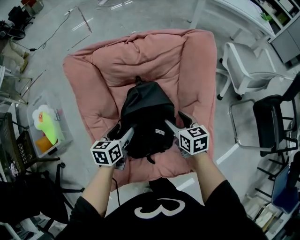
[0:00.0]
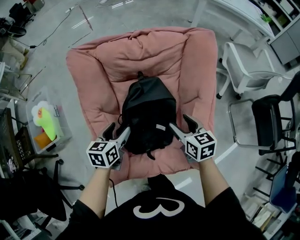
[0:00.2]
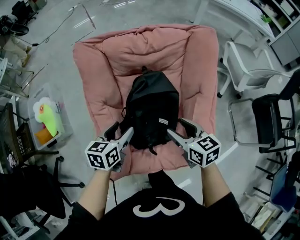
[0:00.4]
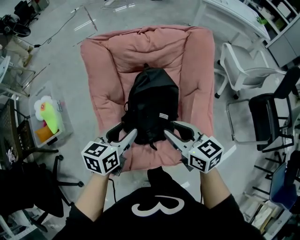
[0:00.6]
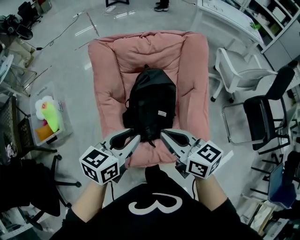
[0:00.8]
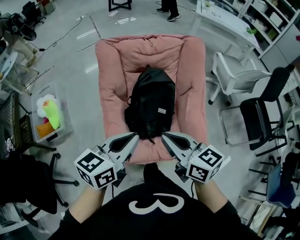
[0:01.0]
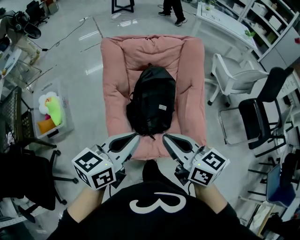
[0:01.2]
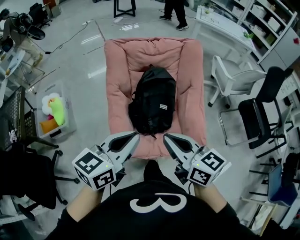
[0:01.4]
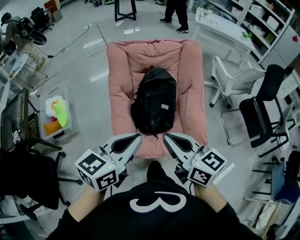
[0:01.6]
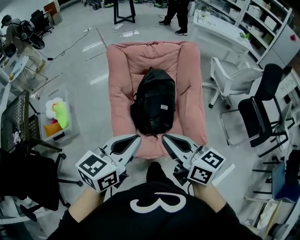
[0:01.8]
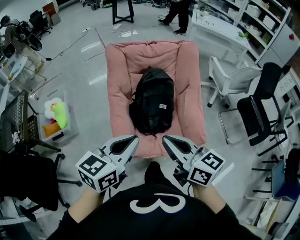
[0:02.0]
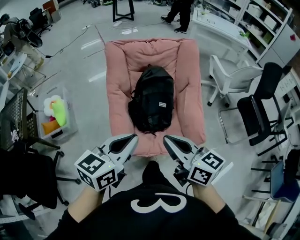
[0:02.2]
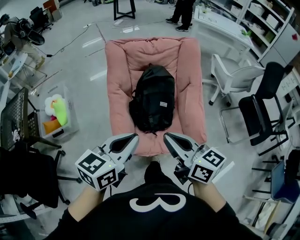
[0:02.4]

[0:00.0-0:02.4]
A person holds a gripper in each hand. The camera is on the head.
0:00.0 to 0:01.2: The left gripper heads upward and backward, covering about 40 cm, swivels roughly 30 degrees, and closes up, while the right gripper travels backward and upward by approximately 40 cm, turns by some 30 degrees, and closes its fingers.
0:01.2 to 0:02.4: Both grippers move backward, roughly 5 cm.

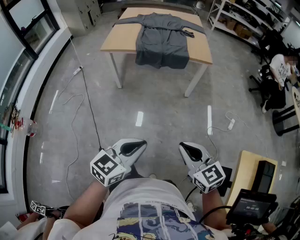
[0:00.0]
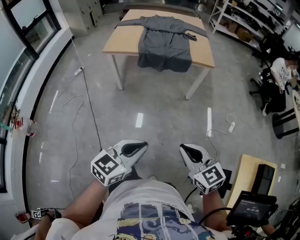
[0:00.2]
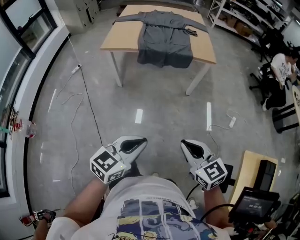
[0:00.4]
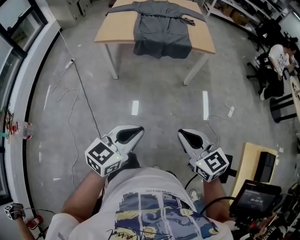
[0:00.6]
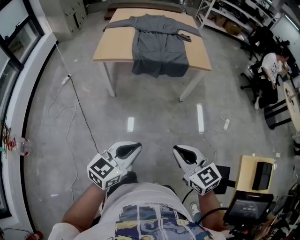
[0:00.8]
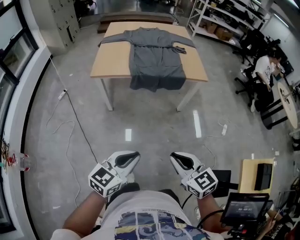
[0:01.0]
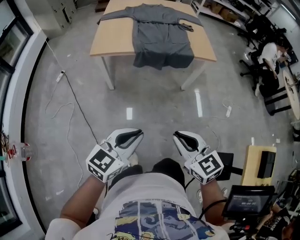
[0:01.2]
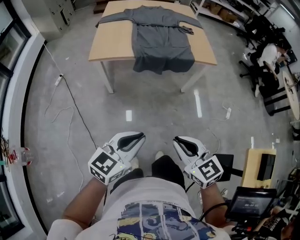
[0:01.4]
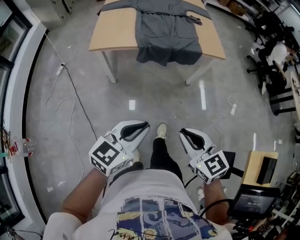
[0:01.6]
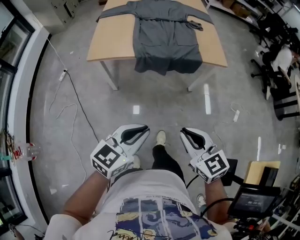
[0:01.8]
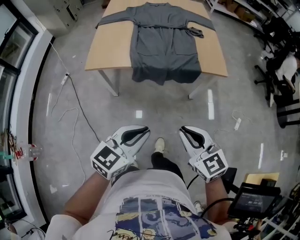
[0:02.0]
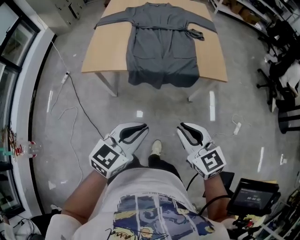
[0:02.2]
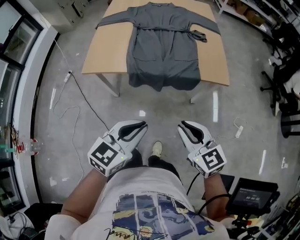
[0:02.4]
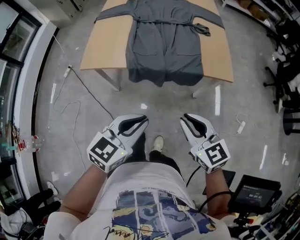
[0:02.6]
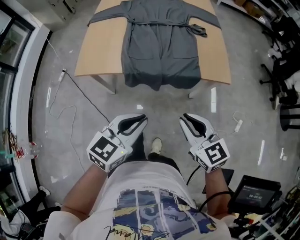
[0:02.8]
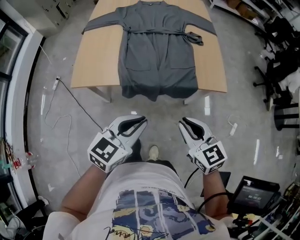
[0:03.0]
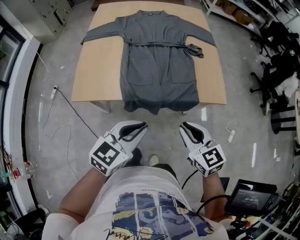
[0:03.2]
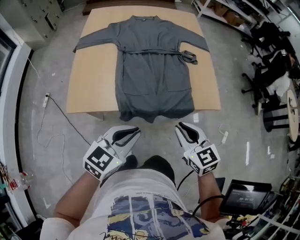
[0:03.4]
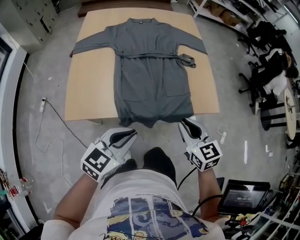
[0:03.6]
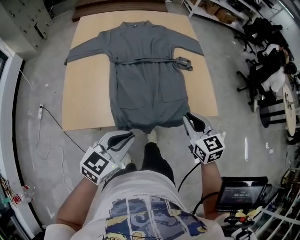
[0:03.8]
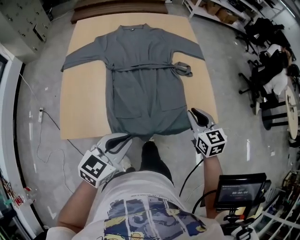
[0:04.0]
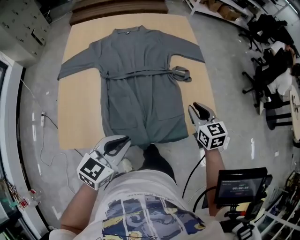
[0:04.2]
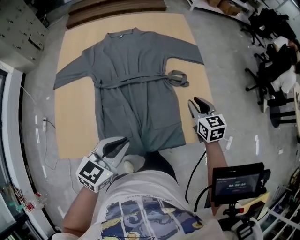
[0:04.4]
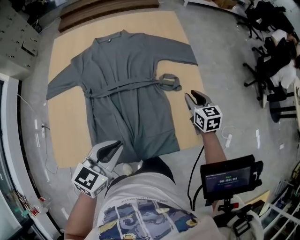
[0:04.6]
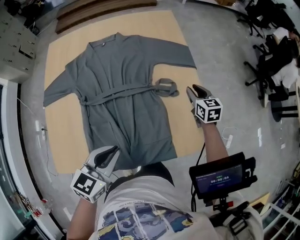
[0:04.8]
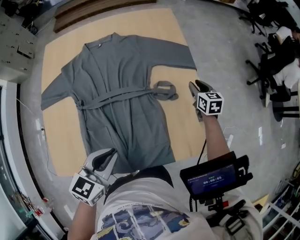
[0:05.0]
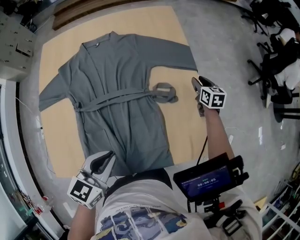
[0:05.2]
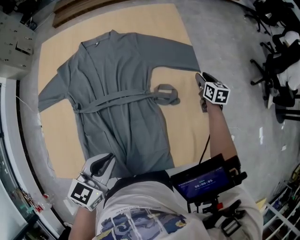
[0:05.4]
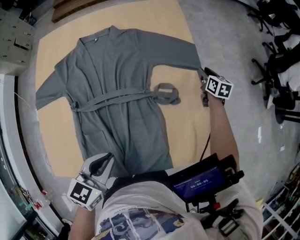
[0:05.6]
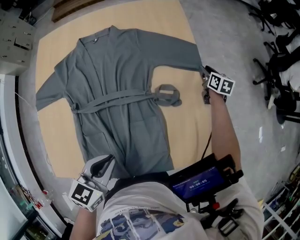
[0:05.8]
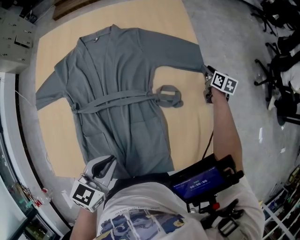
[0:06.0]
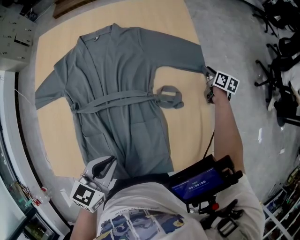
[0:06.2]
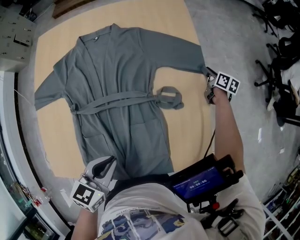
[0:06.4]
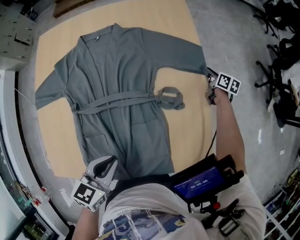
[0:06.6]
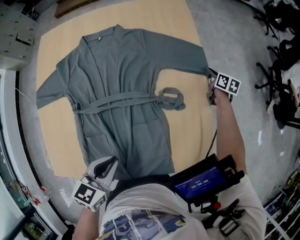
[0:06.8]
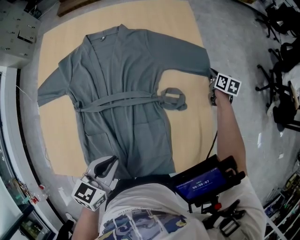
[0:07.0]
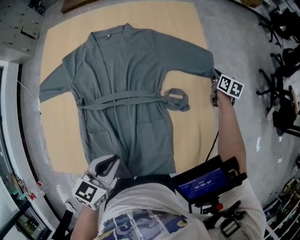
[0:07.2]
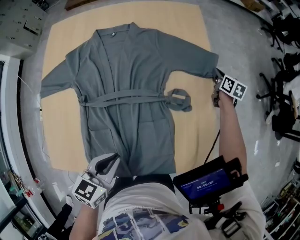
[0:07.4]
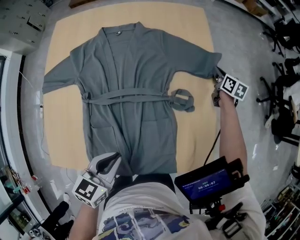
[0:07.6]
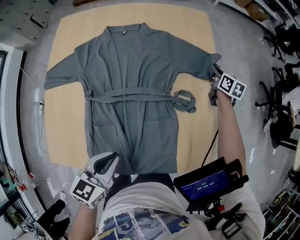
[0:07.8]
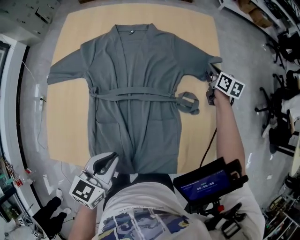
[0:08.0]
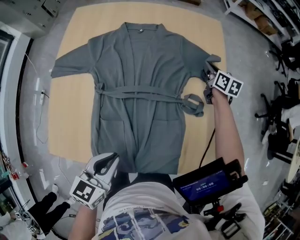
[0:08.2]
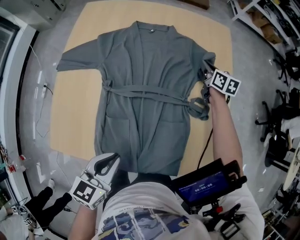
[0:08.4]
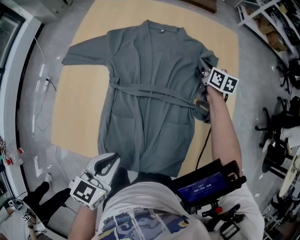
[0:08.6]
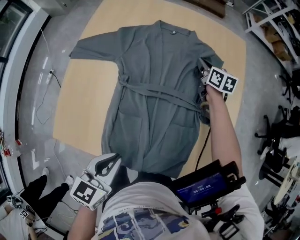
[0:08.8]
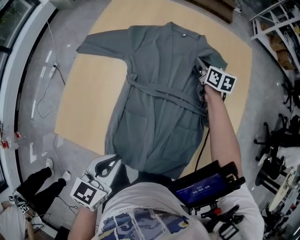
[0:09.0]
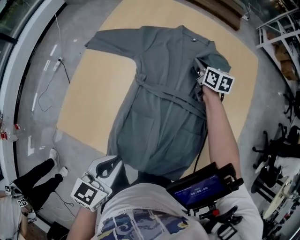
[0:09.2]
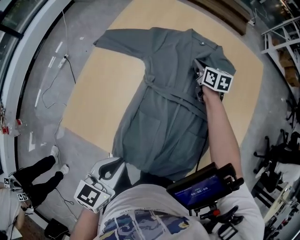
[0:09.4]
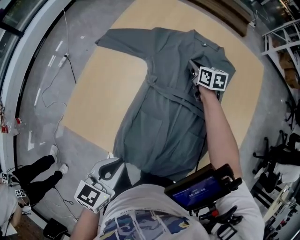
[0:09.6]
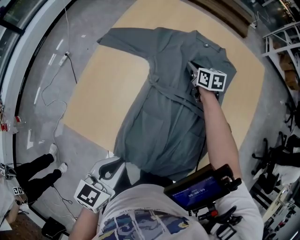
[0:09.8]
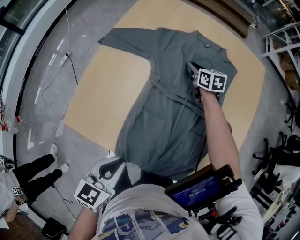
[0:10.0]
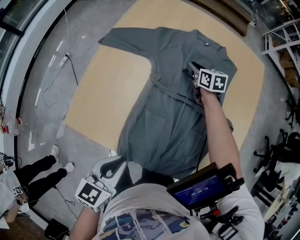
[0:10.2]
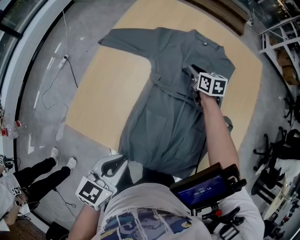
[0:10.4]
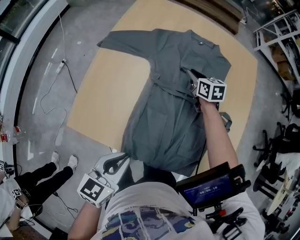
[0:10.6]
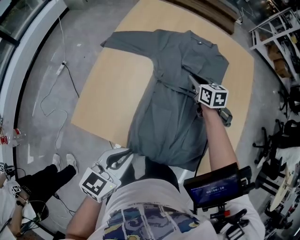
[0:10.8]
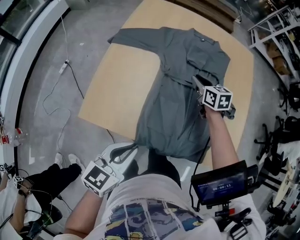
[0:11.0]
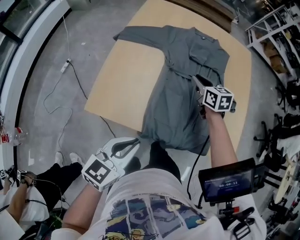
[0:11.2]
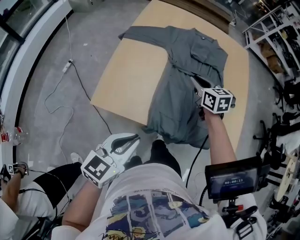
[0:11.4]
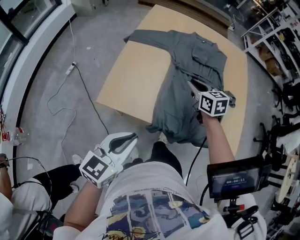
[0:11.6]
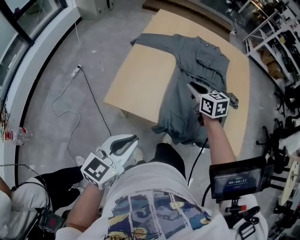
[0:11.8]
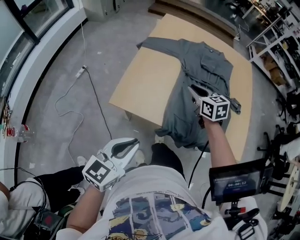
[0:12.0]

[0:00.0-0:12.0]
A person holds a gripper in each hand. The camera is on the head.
0:00.0 to 0:01.6: Both grippers move forward and to the left, roughly 25 cm.
0:01.6 to 0:03.0: The grippers both shift forward by some 30 cm.
0:03.0 to 0:04.4: The left gripper goes approximately 25 cm forward. The right gripper moves forward, approximately 40 cm, and changes its angle by some 20 degrees.
0:04.4 to 0:06.0: The left gripper shifts some 15 cm forward and downward, while the right gripper moves forward and downward, some 40 cm, and turns by some 30 degrees.
0:06.0 to 0:07.6: The right gripper heads upward and to the left, covering approximately 10 cm, and closes up.
0:07.6 to 0:09.0: The left gripper shifts by some 15 cm. Meanwhile the right gripper shifts by roughly 40 cm, and rotates roughly 30 degrees.
0:09.0 to 0:10.4: The left gripper heads to the left, covering some 5 cm; the right gripper travels to the left by some 15 cm.
0:10.4 to 0:12.0: The left gripper shifts roughly 25 cm backward, to the left and upward, while the right gripper travels backward, to the left and upward by roughly 35 cm.

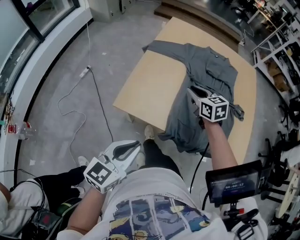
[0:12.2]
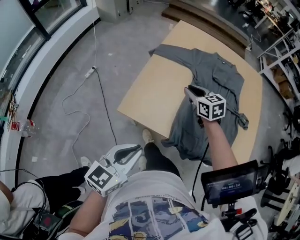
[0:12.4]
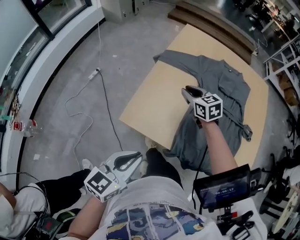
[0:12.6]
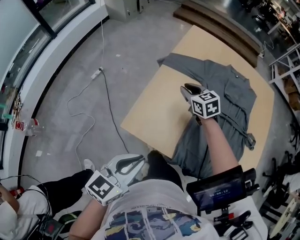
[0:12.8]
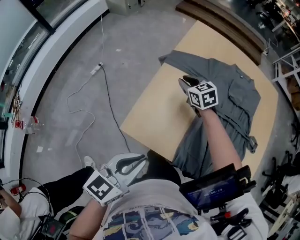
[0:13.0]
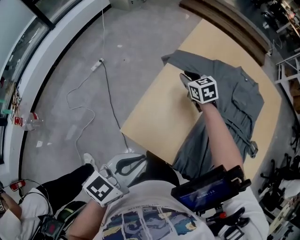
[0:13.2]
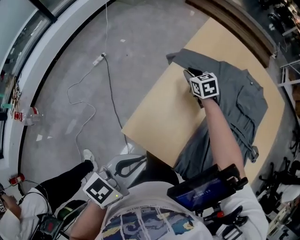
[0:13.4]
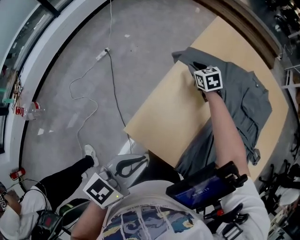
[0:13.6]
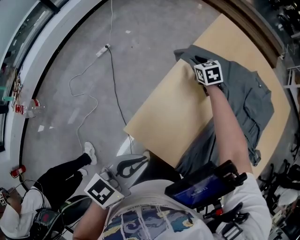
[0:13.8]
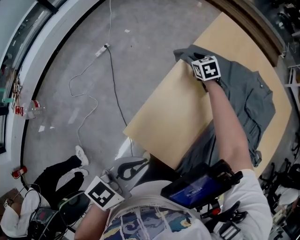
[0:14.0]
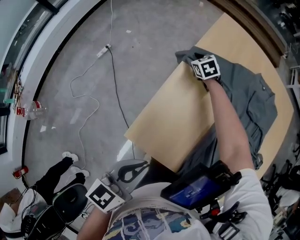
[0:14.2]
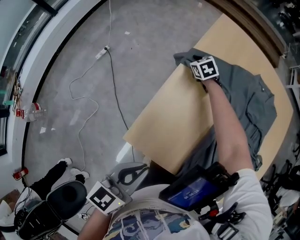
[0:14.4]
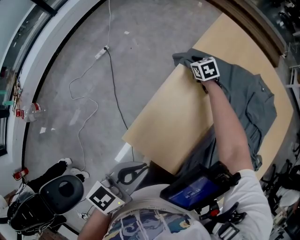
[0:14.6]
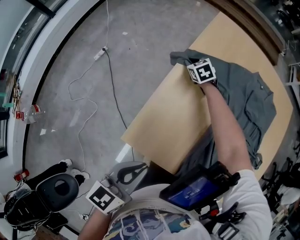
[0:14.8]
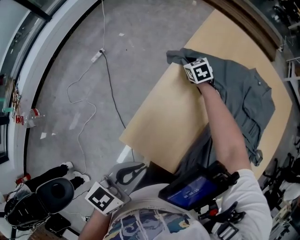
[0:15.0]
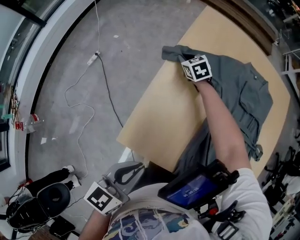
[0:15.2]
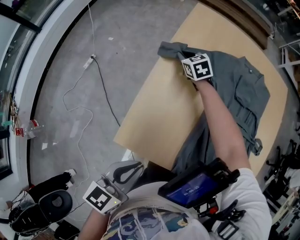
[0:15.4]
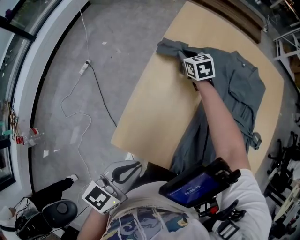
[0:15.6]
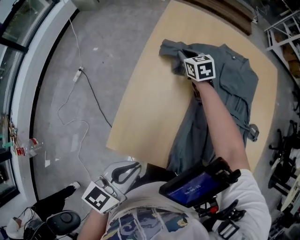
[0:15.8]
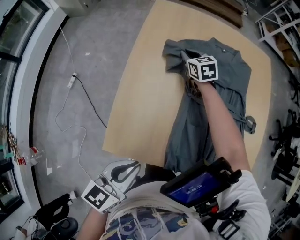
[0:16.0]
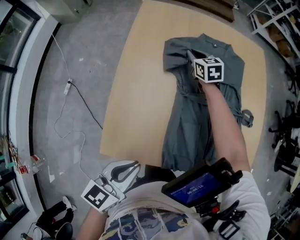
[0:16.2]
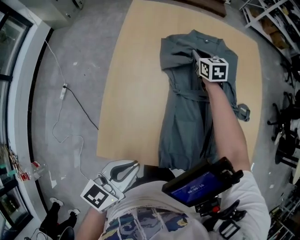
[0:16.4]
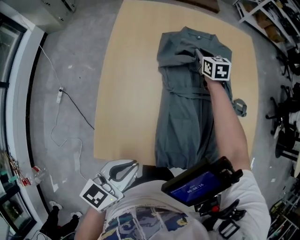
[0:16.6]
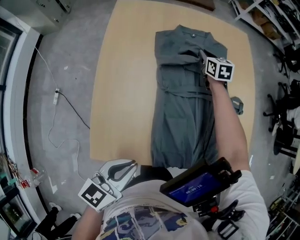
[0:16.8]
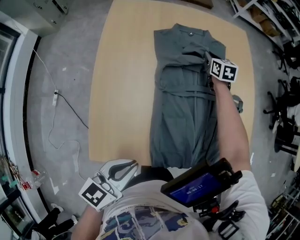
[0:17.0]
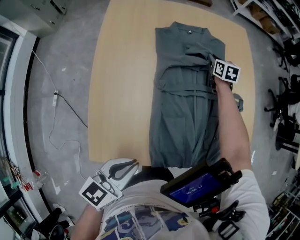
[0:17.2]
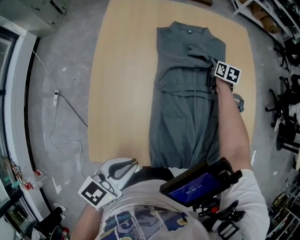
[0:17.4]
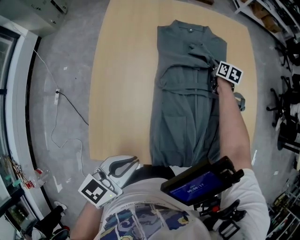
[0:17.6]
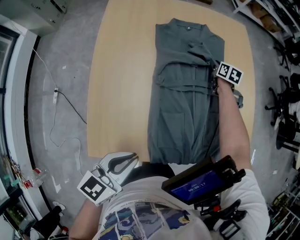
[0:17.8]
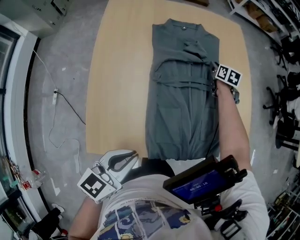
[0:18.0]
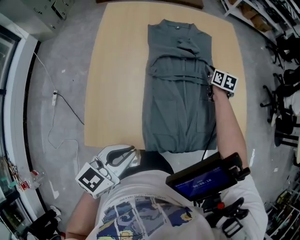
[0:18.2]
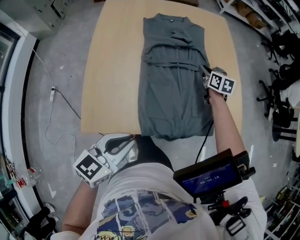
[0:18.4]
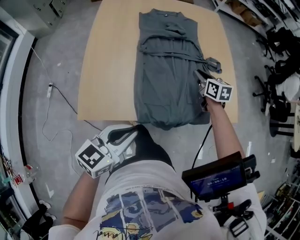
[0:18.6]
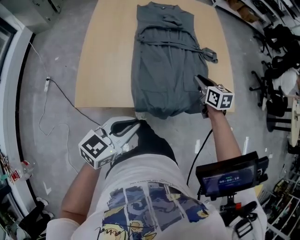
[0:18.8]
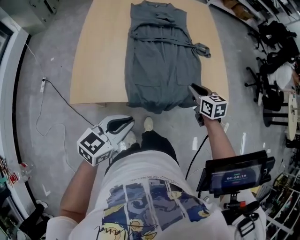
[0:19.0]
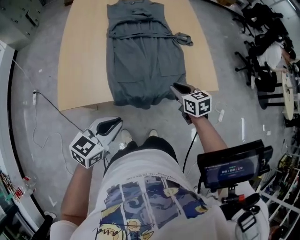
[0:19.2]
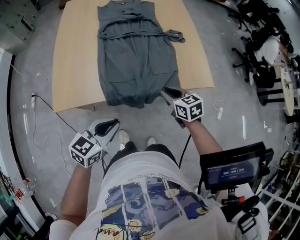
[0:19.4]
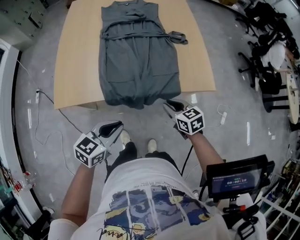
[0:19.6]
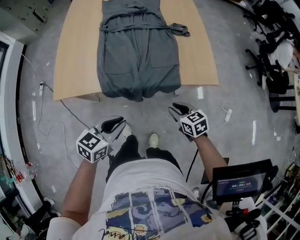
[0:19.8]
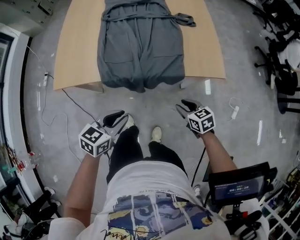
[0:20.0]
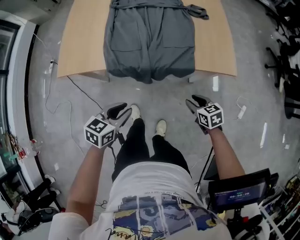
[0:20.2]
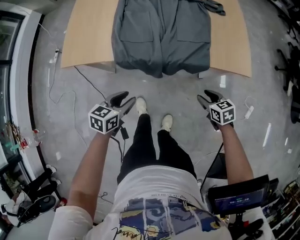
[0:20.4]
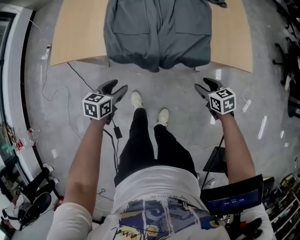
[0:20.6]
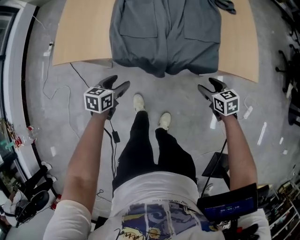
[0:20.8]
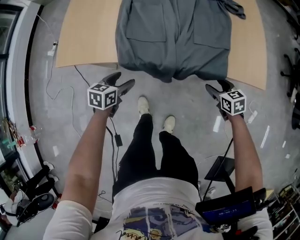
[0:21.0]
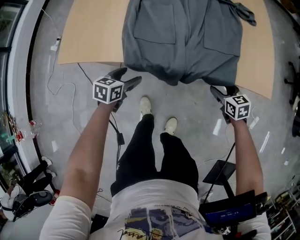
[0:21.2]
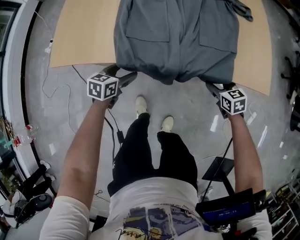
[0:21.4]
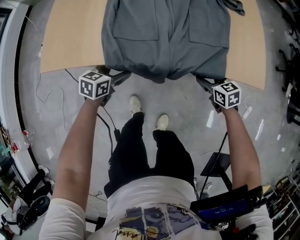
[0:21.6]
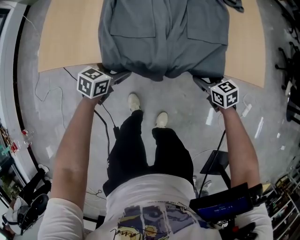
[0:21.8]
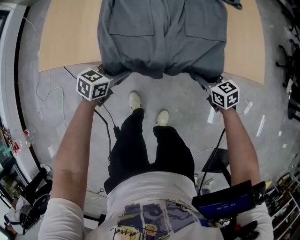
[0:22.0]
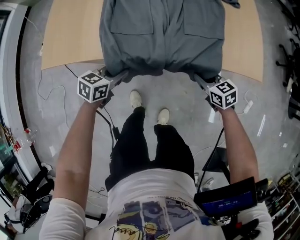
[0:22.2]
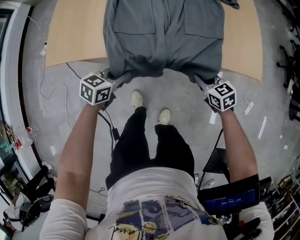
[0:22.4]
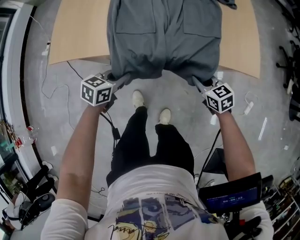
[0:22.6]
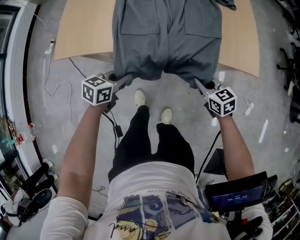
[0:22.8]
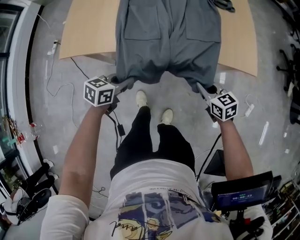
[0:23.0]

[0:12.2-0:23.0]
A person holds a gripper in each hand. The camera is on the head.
0:12.2 to 0:13.8: The right gripper shifts roughly 40 cm forward, downward and to the left, and swivels approximately 20 degrees; the left gripper is displaced forward by approximately 15 cm.
0:13.8 to 0:15.2: There are only small adjustments of the grippers.
0:15.2 to 0:16.8: The right gripper ends up about 40 cm from where it was, and turns by roughly 50 degrees, while the left gripper changes place by approximately 10 cm, and rotates roughly 30 degrees.
0:16.8 to 0:18.4: The right gripper moves to the right and backward, about 25 cm; the left gripper is displaced to the right and backward by roughly 10 cm.
0:18.4 to 0:20.0: The right gripper goes roughly 50 cm backward and to the right, and rotates approximately 30 degrees, while the left gripper moves to the right, backward and downward, some 25 cm.
0:20.0 to 0:21.4: The left gripper moves downward, forward and to the left, some 30 cm, and opens; the right gripper heads forward and downward, covering approximately 20 cm, and opens up.
0:21.4 to 0:23.0: The two grippers go some 15 cm upward and backward. The left gripper closes; the right gripper closes its fingers.
